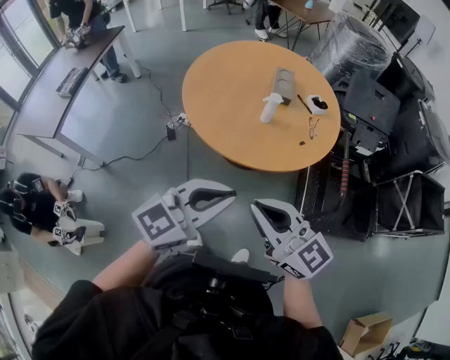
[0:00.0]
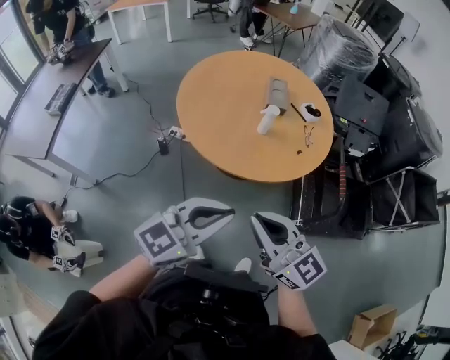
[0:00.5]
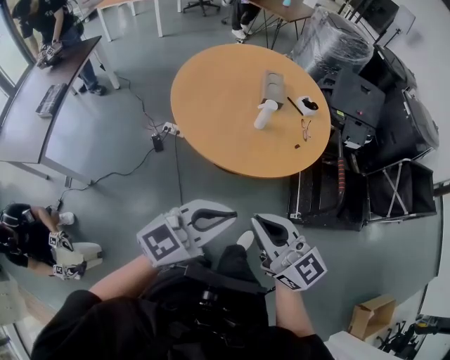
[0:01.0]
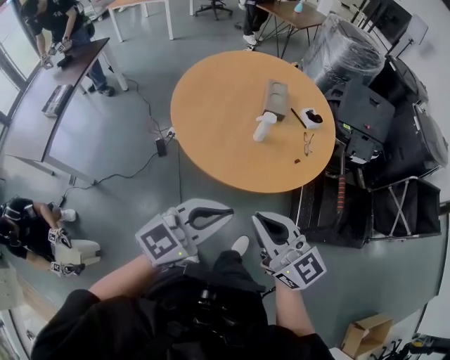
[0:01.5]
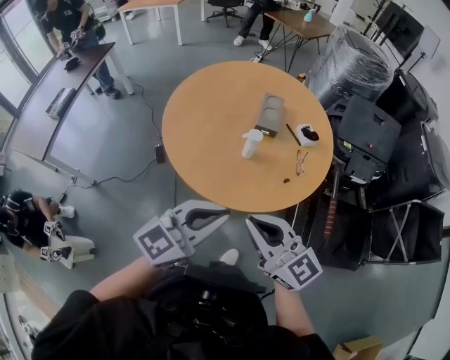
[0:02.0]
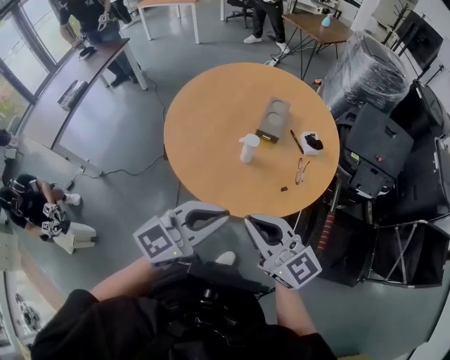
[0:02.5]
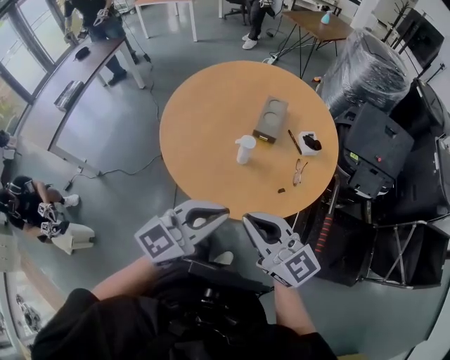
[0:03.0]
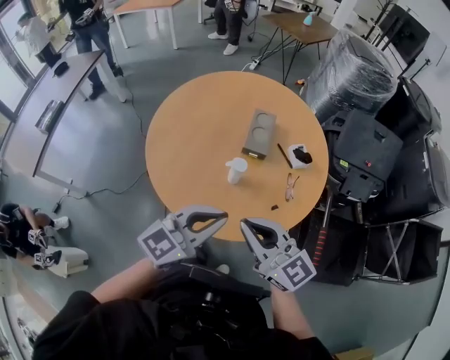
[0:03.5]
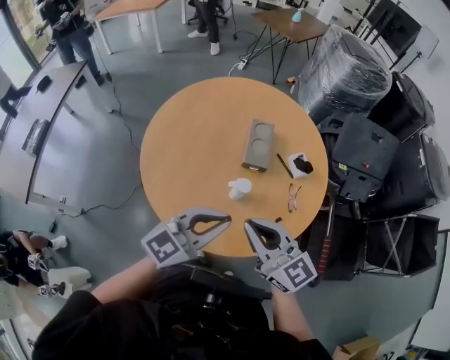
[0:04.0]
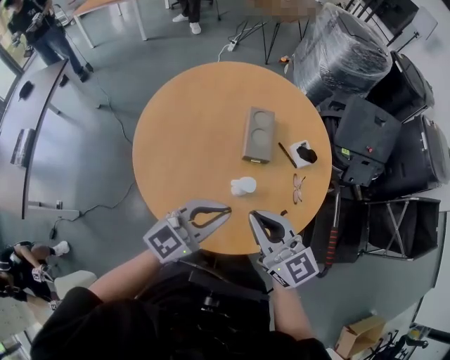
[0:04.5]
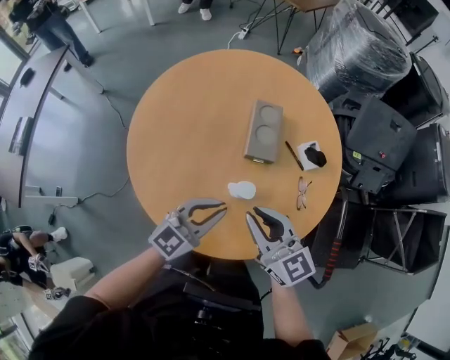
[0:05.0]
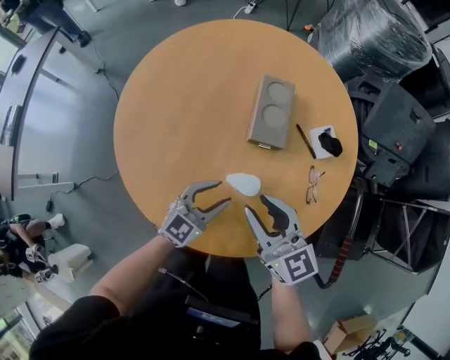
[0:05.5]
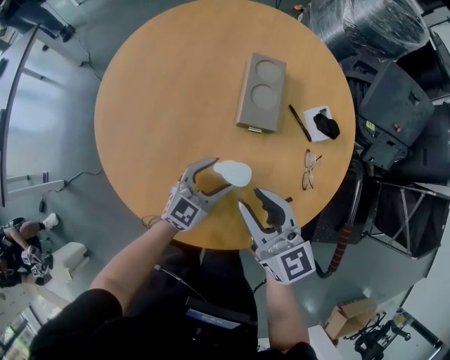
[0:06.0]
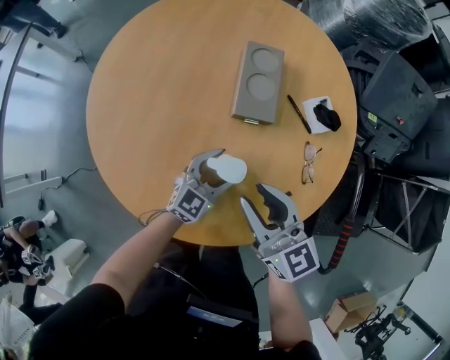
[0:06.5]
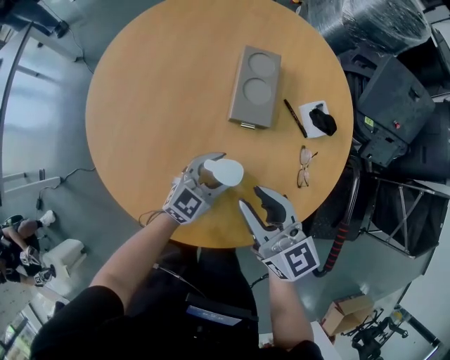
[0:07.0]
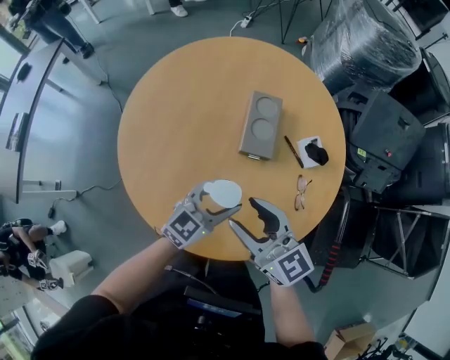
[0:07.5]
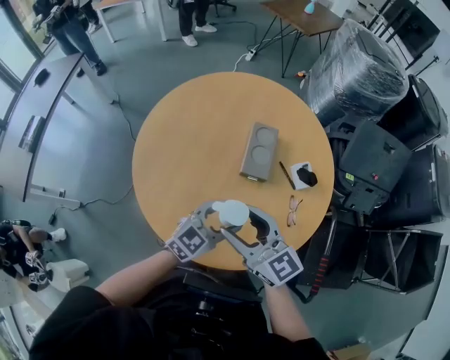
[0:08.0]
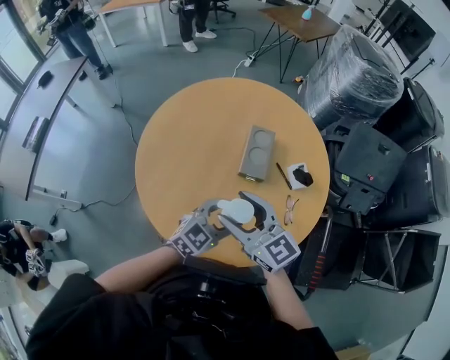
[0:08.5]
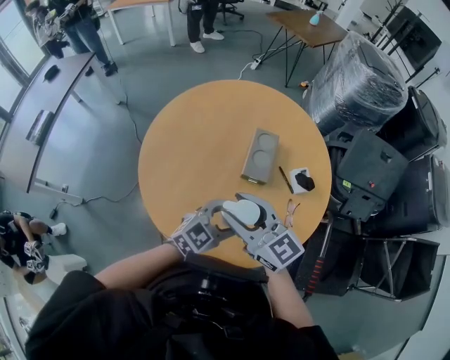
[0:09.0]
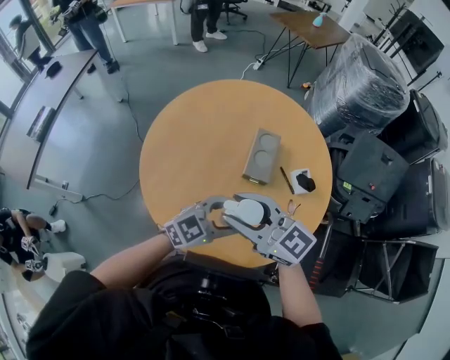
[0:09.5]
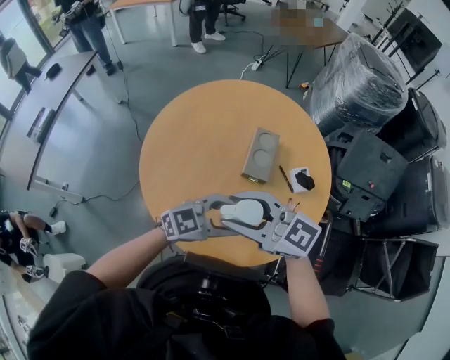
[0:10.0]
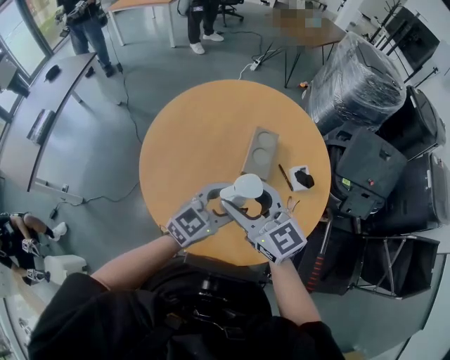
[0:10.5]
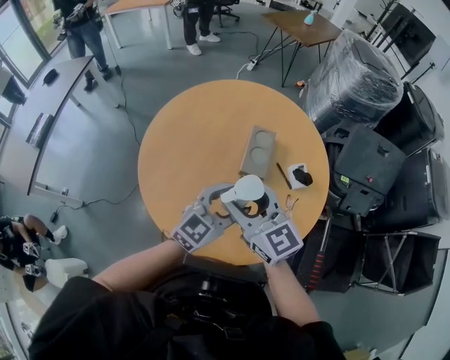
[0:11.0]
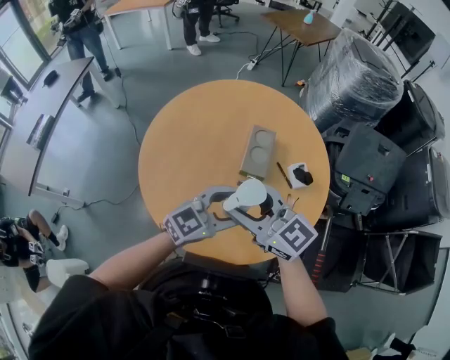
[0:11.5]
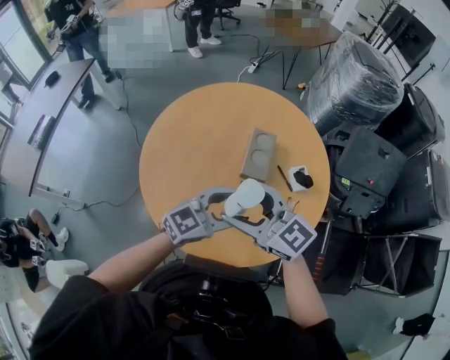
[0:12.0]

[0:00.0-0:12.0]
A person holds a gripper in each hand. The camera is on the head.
0:00.0 to 0:02.0: Both grippers move forward, some 20 cm.
0:02.0 to 0:04.0: The grippers both shift forward by about 30 cm.
0:04.0 to 0:06.0: The grippers both shift downward and forward by some 40 cm. The right gripper opens up. Meanwhile the left gripper opens its fingers.
0:06.0 to 0:08.0: Both grippers travel together upward, approximately 25 cm. The right gripper opens up.
0:08.0 to 0:10.0: The two grippers go about 10 cm upward. The left gripper changes its angle by some 20 degrees. The right gripper changes its angle by some 30 degrees.
0:10.0 to 0:12.0: The right gripper opens.

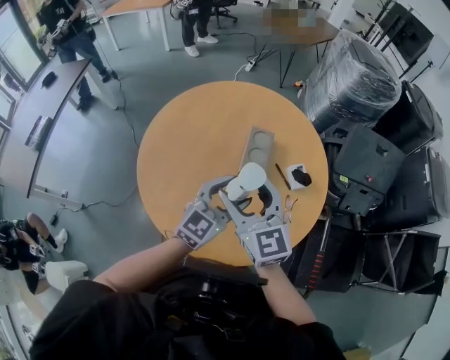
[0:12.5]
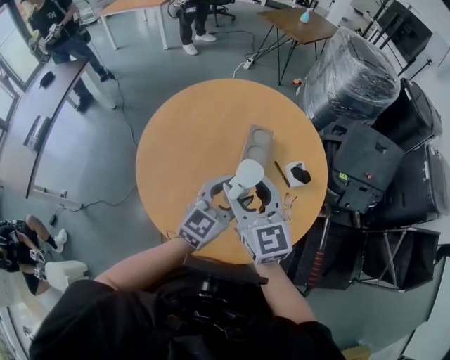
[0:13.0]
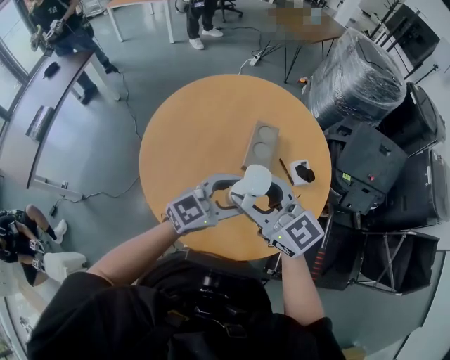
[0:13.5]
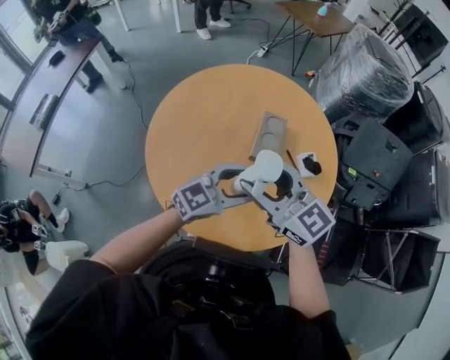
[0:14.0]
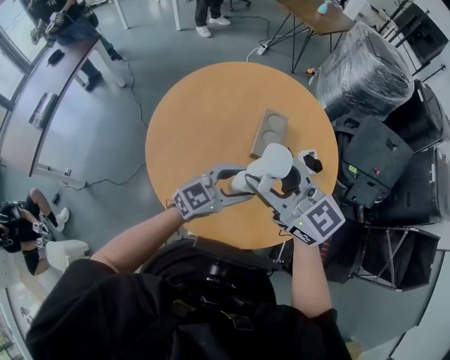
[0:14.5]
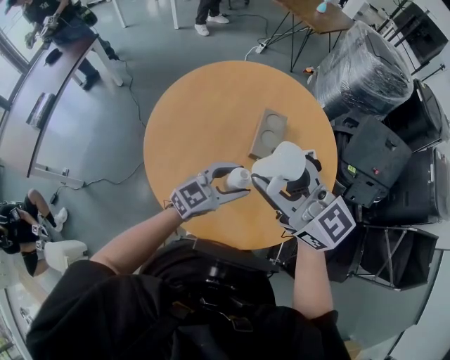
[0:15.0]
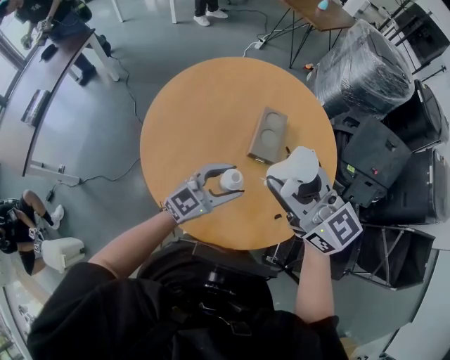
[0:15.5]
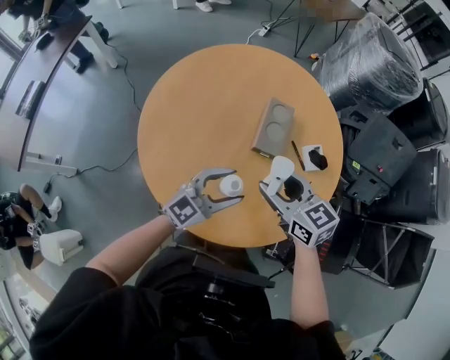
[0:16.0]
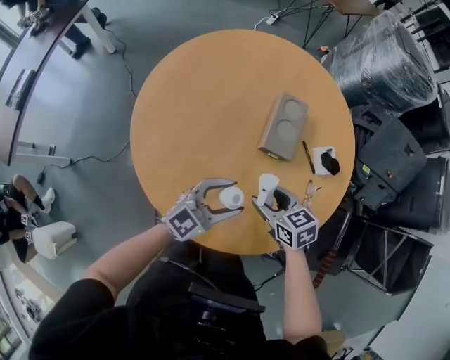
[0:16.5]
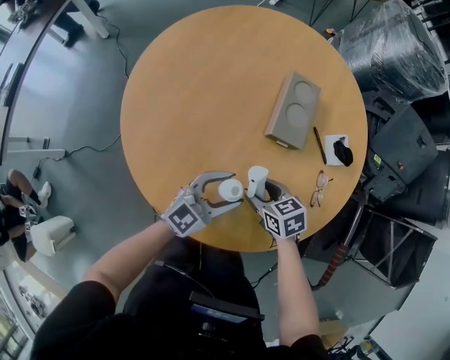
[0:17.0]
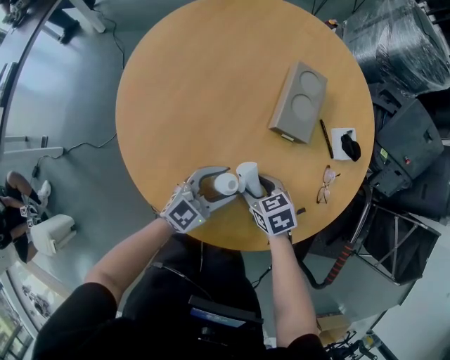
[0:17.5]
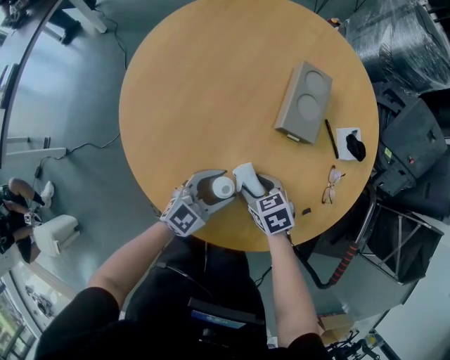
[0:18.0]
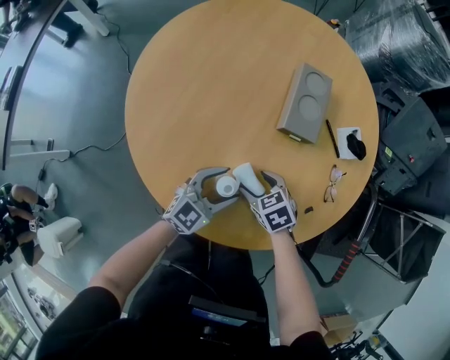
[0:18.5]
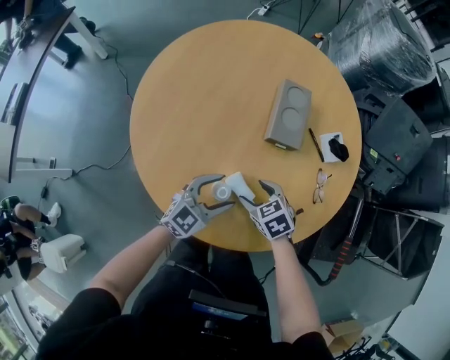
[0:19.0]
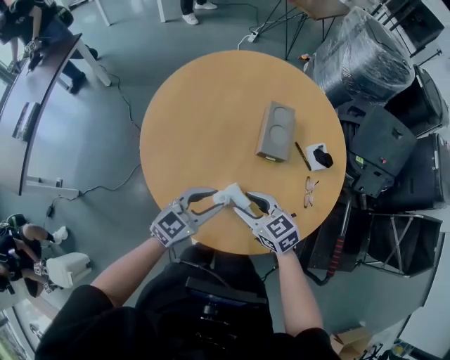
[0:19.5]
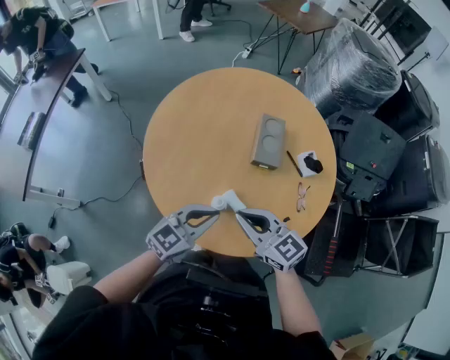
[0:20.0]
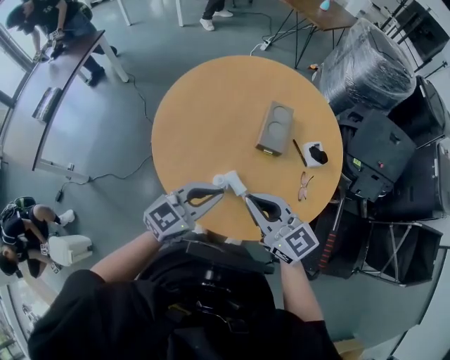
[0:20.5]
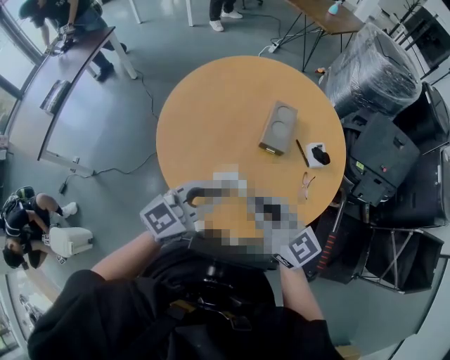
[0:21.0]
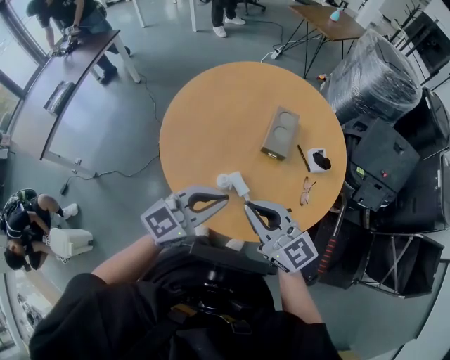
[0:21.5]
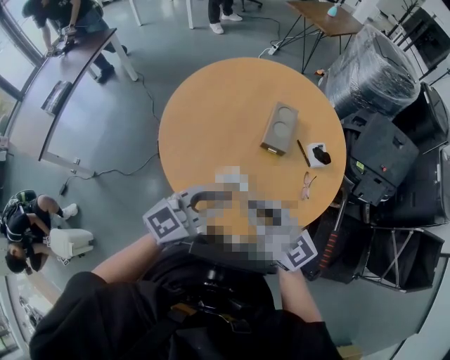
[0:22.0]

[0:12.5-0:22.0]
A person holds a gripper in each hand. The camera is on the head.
0:12.5 to 0:14.5: The right gripper moves about 5 cm, and changes its angle by about 30 degrees. The left gripper shifts by approximately 5 cm, and swivels some 20 degrees.
0:14.5 to 0:16.5: The left gripper shifts about 15 cm downward. The right gripper goes roughly 40 cm downward, and tilts its fingers approximately 40 degrees downward.
0:16.5 to 0:18.0: Both grippers travel together downward, approximately 20 cm.
0:18.0 to 0:20.0: The grippers both shift upward by approximately 35 cm. The left gripper closes its fingers. The right gripper angles its fingers upward, by approximately 50 degrees, and closes up.
0:20.0 to 0:22.0: The left gripper is displaced upward, backward and to the right by roughly 15 cm; the right gripper shifts approximately 10 cm upward and backward.

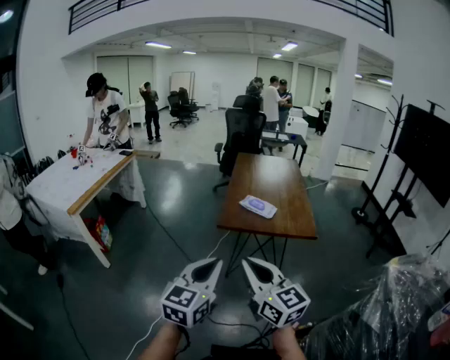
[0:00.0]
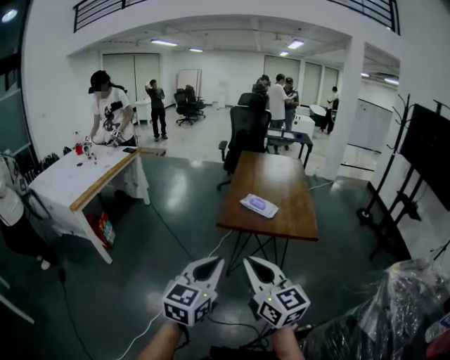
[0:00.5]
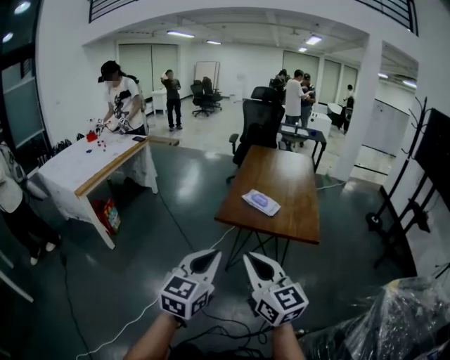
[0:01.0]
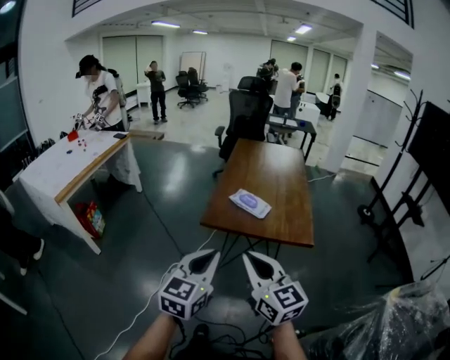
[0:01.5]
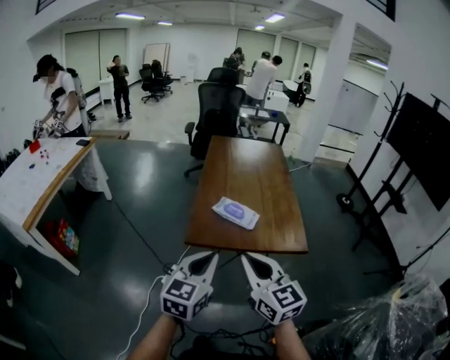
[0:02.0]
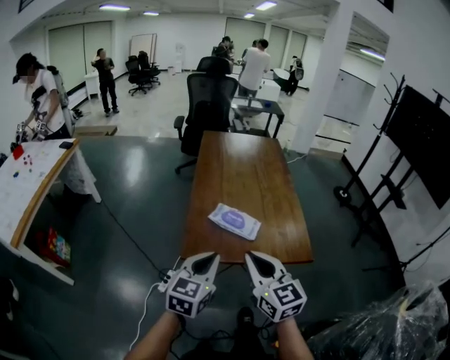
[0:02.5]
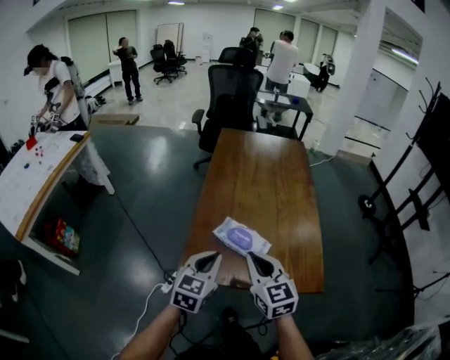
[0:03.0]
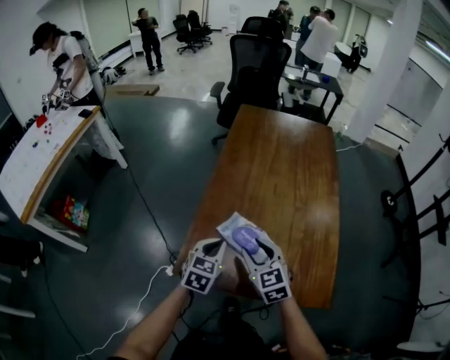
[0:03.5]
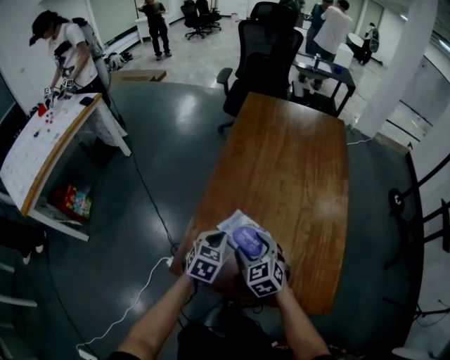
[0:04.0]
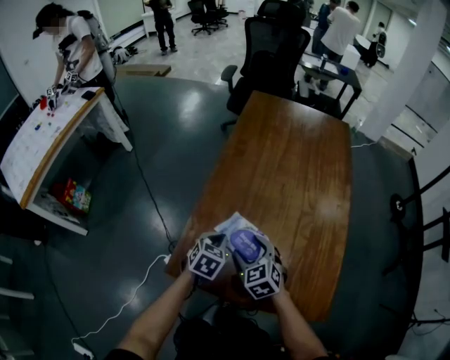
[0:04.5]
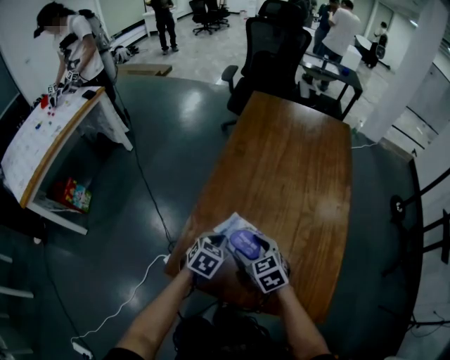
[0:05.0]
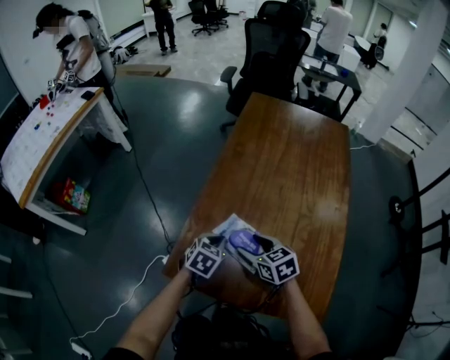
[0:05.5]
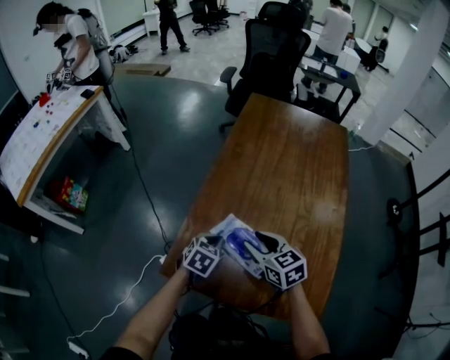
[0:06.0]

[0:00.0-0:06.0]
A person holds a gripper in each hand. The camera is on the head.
0:00.0 to 0:02.0: The left gripper moves forward, about 25 cm; the right gripper travels forward and to the right by roughly 25 cm.
0:02.0 to 0:04.0: Both grippers travel together forward and downward, some 40 cm. The left gripper tips its fingers downward by about 30 degrees, while the right gripper tips its fingers downward by roughly 30 degrees, and opens its fingers.
0:04.0 to 0:06.0: The right gripper changes place by roughly 5 cm, and rotates about 30 degrees.
